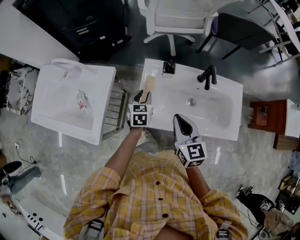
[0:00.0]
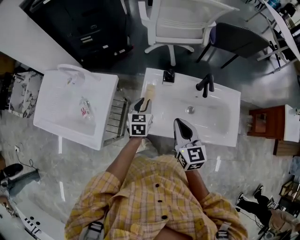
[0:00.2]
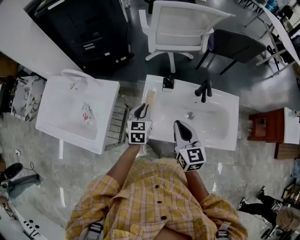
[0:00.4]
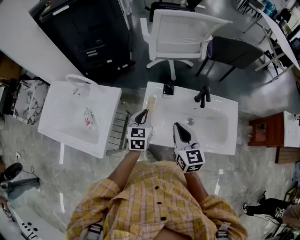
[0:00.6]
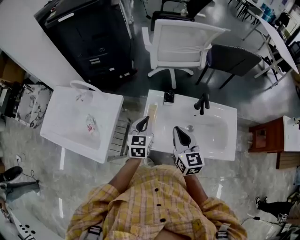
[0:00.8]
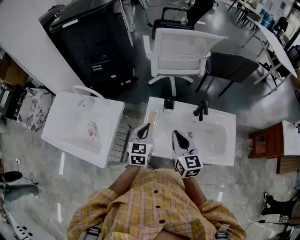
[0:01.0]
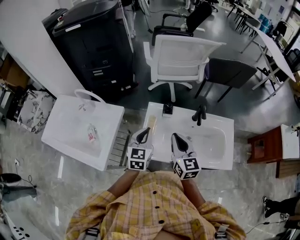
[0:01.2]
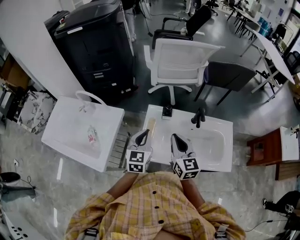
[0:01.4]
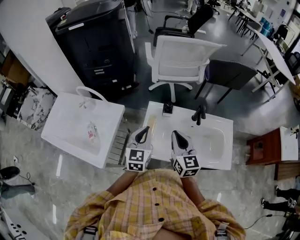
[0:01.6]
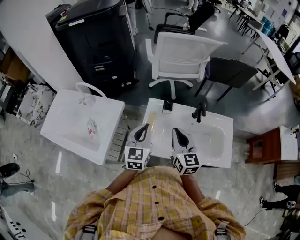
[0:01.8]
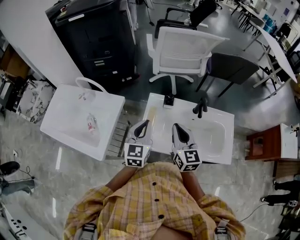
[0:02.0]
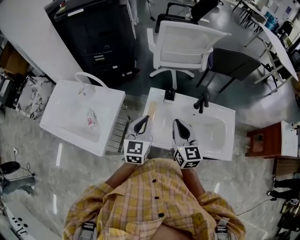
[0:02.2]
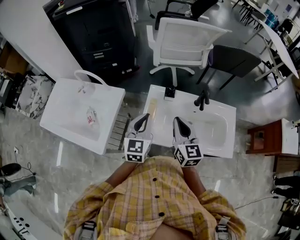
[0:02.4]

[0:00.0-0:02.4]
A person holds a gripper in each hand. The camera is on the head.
0:00.0 to 0:01.2: The right gripper goes about 5 cm upward; the left gripper heads upward, covering about 15 cm, turns by roughly 20 degrees, and closes up.
0:01.2 to 0:02.4: The grippers move only a little.

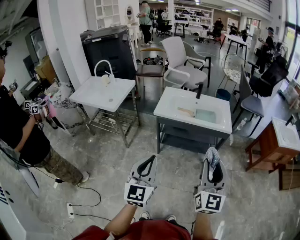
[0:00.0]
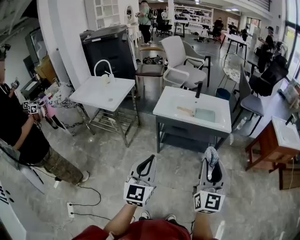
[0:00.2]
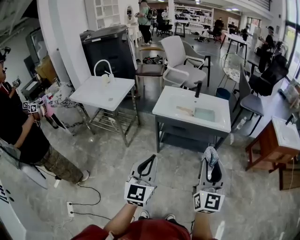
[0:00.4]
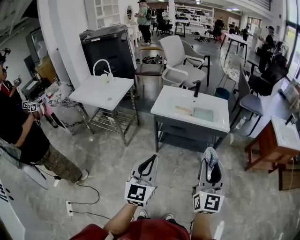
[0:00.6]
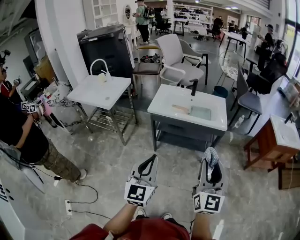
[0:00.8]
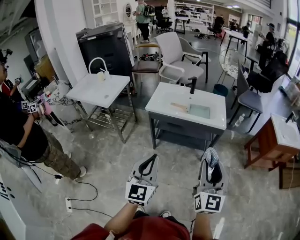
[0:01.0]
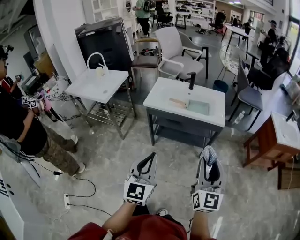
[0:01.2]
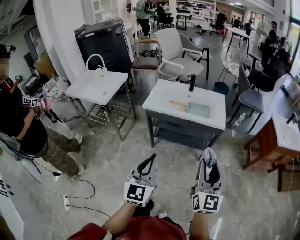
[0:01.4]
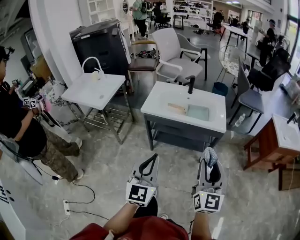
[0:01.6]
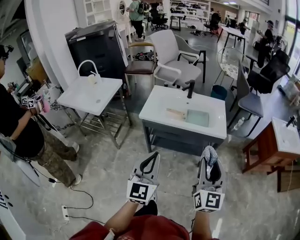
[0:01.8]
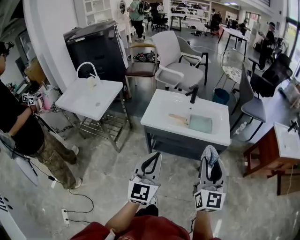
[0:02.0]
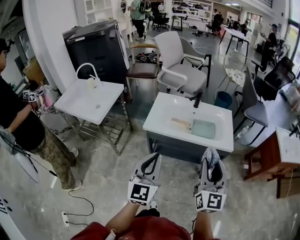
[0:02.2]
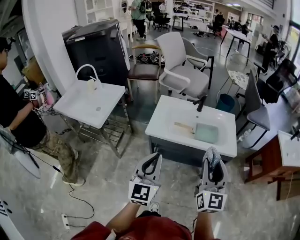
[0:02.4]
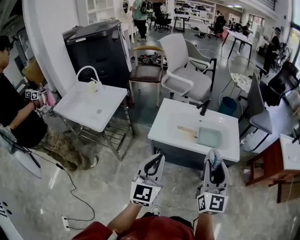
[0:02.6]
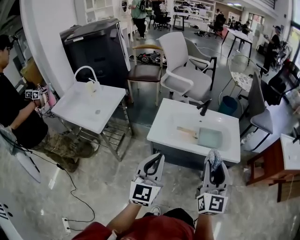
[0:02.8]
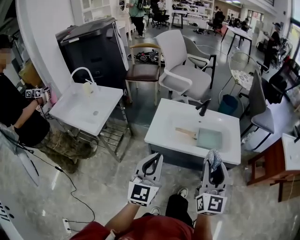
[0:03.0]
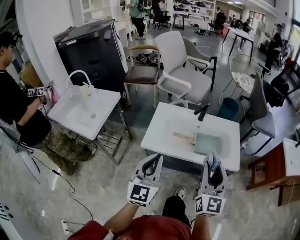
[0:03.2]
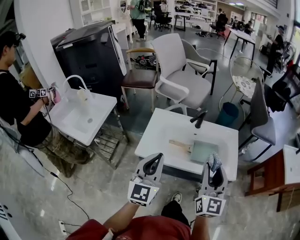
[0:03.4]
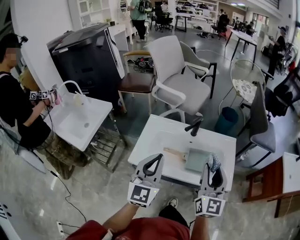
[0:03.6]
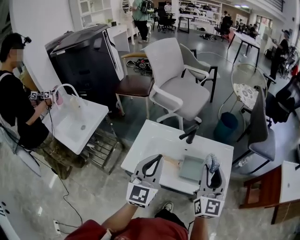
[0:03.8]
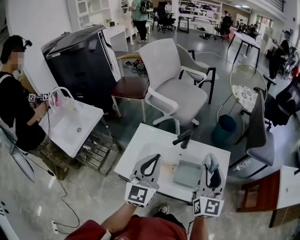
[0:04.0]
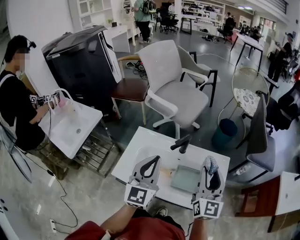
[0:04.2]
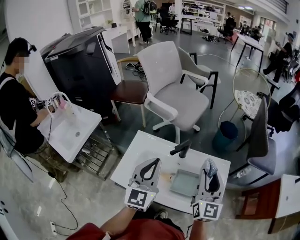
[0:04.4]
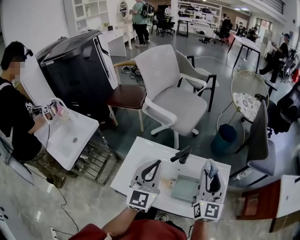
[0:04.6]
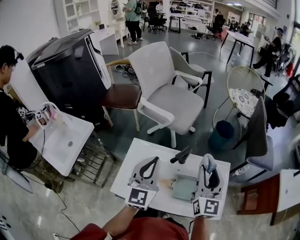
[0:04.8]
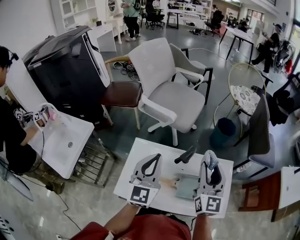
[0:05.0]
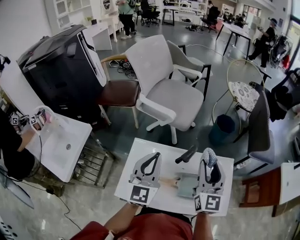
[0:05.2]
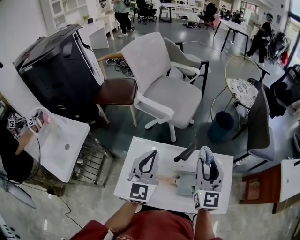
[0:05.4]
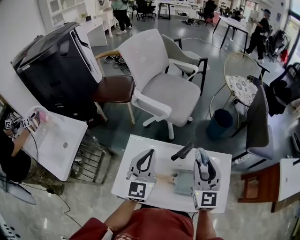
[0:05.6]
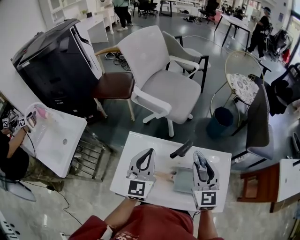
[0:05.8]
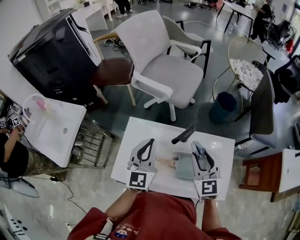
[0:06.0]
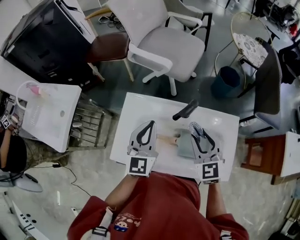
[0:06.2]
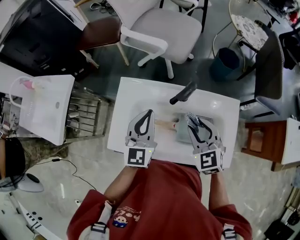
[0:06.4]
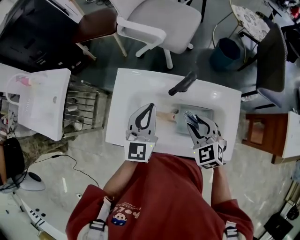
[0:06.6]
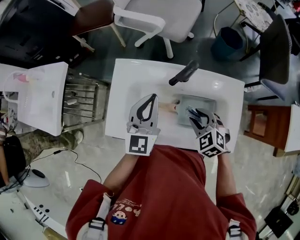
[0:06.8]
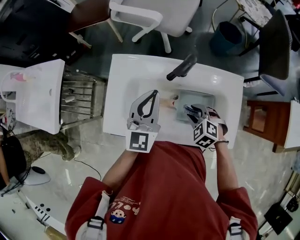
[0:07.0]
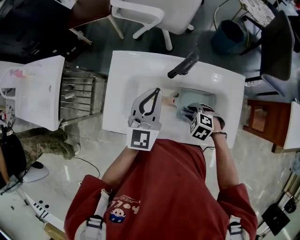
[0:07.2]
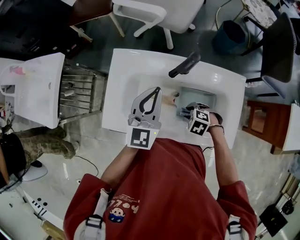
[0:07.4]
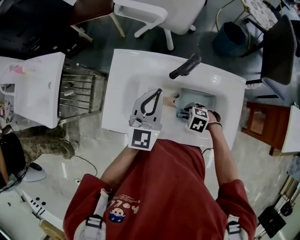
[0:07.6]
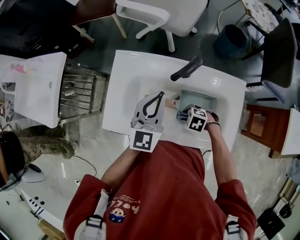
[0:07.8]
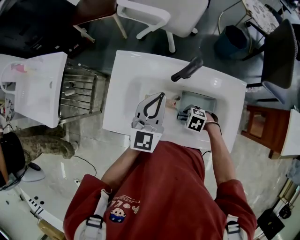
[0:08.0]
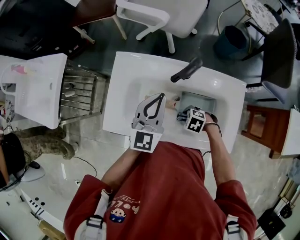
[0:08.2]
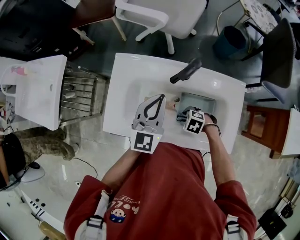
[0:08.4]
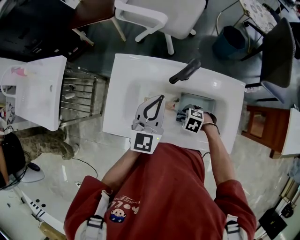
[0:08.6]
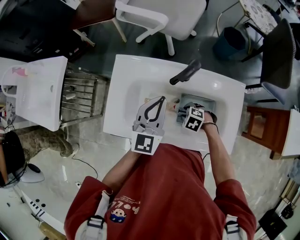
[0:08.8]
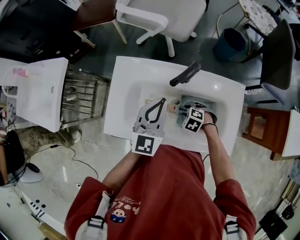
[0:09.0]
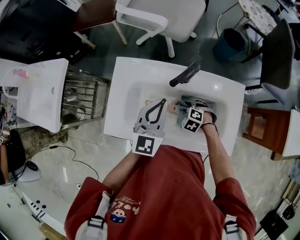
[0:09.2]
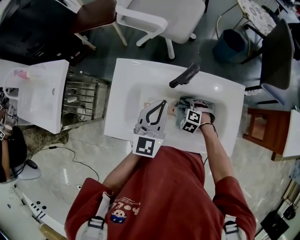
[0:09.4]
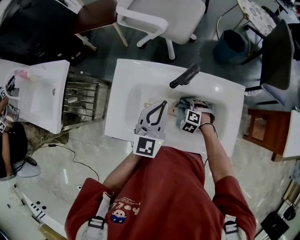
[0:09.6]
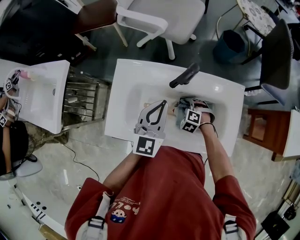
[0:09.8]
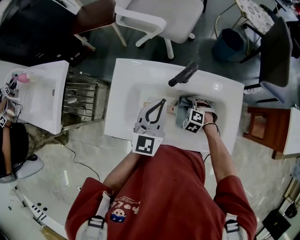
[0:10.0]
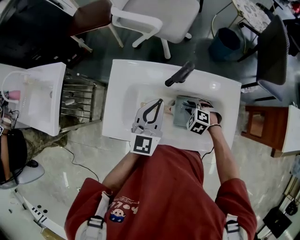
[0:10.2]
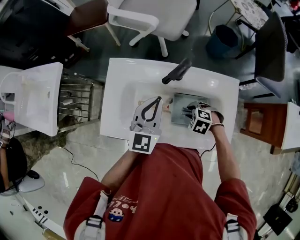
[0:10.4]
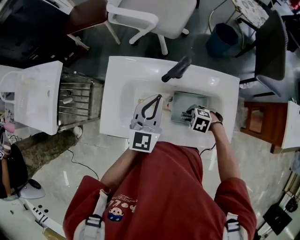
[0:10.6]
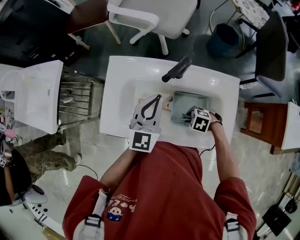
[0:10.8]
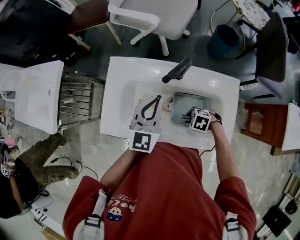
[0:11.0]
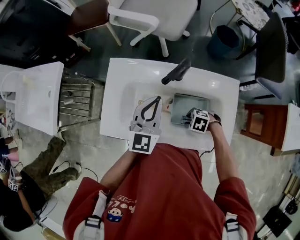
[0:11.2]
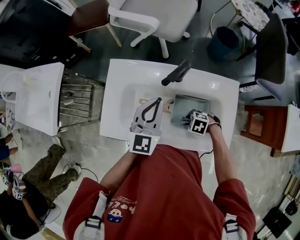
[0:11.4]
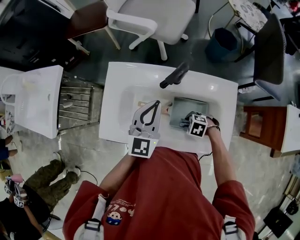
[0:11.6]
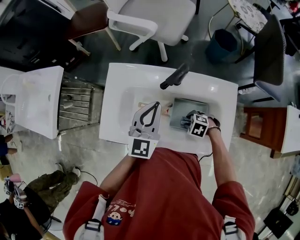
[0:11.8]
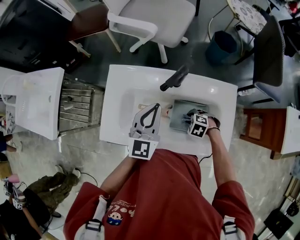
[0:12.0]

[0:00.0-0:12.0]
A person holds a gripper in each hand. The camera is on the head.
0:00.0 to 0:01.6: The two grippers go some 10 cm to the right and forward.
0:01.6 to 0:03.0: Both grippers travel together forward and to the left, roughly 30 cm.
0:03.0 to 0:04.4: The left gripper goes approximately 35 cm forward and to the right. Meanwhile the right gripper shifts roughly 35 cm forward.
0:04.4 to 0:06.0: The left gripper travels downward, forward and to the left by approximately 15 cm, while the right gripper goes some 15 cm downward, to the left and forward, and rotates roughly 30 degrees.
0:06.0 to 0:07.6: The left gripper moves downward, some 10 cm, while the right gripper travels downward by approximately 30 cm, and tilts its fingers about 50 degrees downward.
0:07.6 to 0:09.0: The right gripper changes place by approximately 5 cm.
0:09.0 to 0:10.4: The right gripper goes some 5 cm upward.
0:10.4 to 0:12.0: The right gripper shifts by approximately 5 cm.

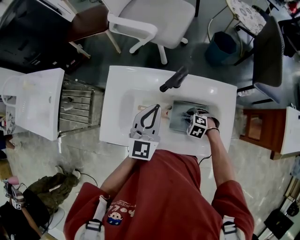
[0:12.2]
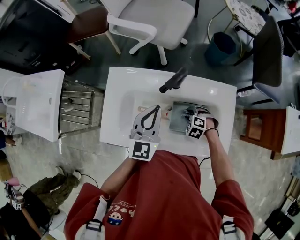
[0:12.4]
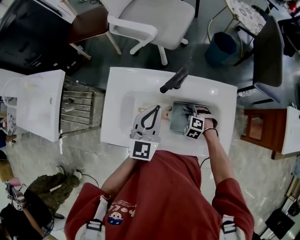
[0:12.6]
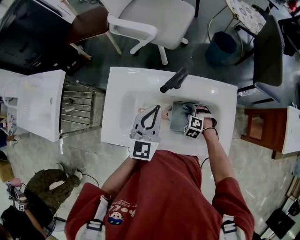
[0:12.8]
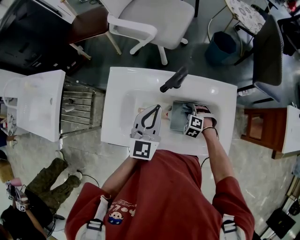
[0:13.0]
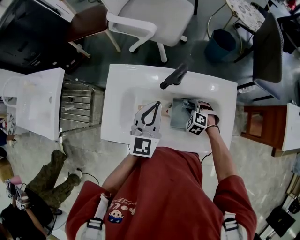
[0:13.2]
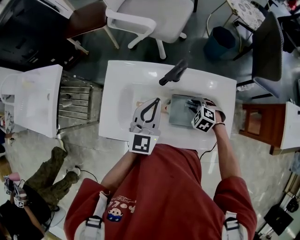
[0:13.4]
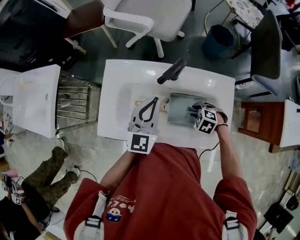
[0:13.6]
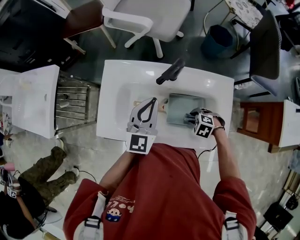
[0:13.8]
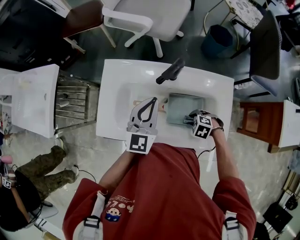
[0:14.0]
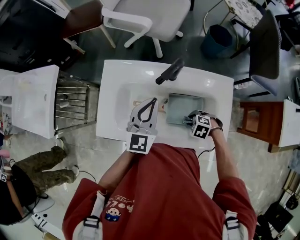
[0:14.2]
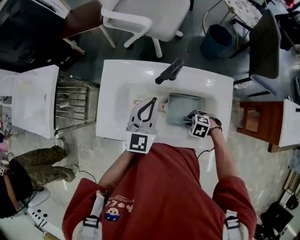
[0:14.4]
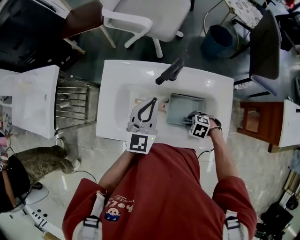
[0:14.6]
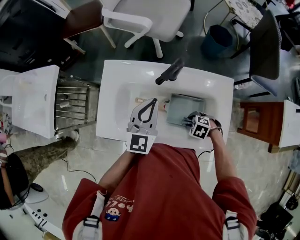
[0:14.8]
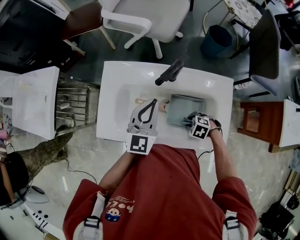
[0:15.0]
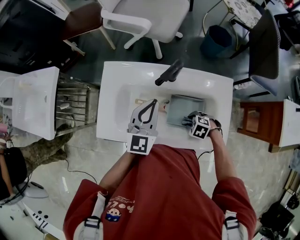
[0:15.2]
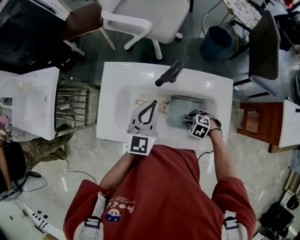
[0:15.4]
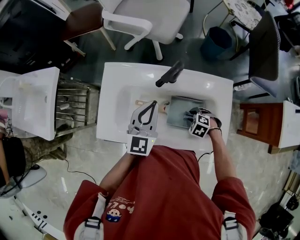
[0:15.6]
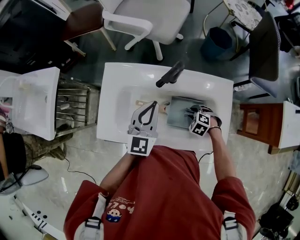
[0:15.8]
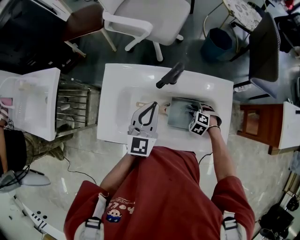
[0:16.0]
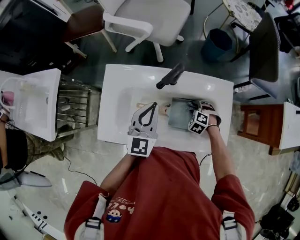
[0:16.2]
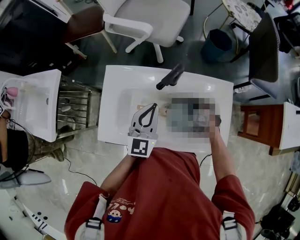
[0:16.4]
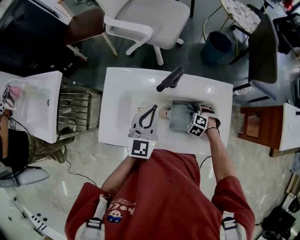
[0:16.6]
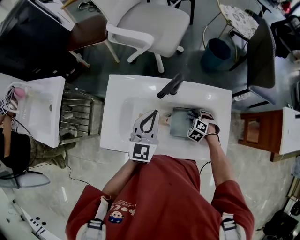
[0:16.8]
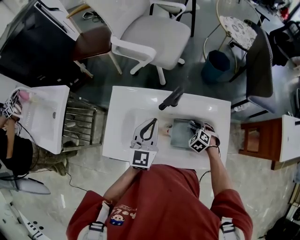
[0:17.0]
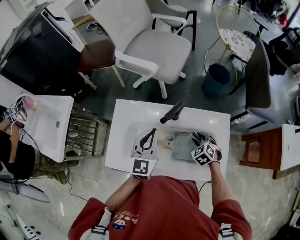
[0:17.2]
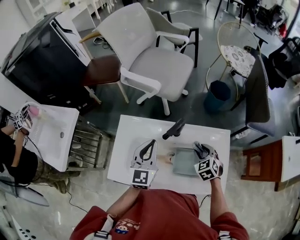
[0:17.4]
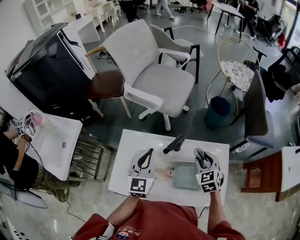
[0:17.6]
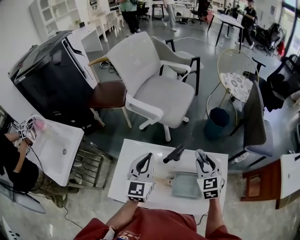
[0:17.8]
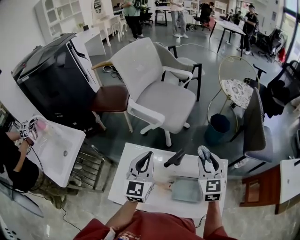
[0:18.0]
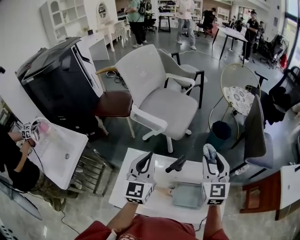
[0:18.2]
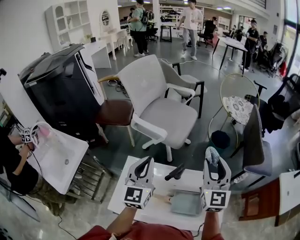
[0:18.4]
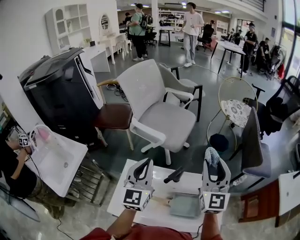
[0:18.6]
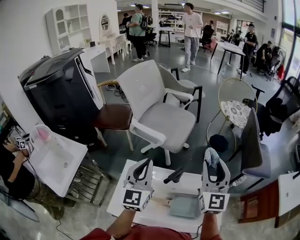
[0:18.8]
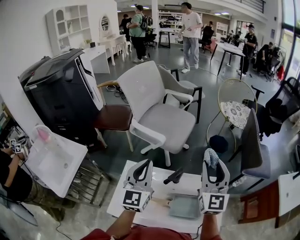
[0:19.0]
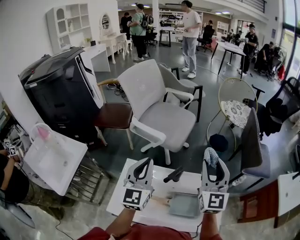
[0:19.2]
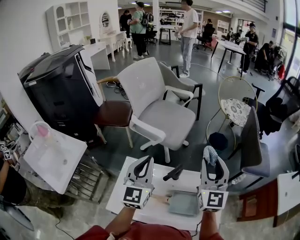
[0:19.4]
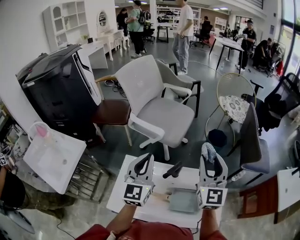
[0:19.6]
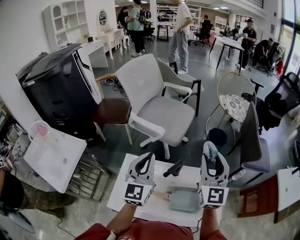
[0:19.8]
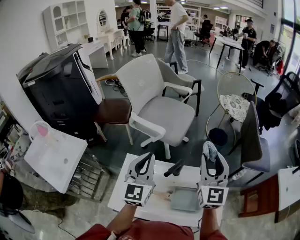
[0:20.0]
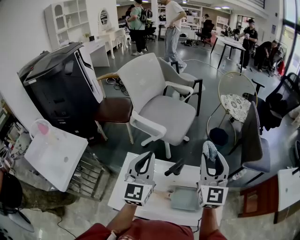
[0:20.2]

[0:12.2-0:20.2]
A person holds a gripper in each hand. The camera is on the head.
0:12.2 to 0:13.8: The right gripper moves about 5 cm.
0:13.8 to 0:15.4: The grippers stay close to where they were, moving slightly.
0:15.4 to 0:17.0: The right gripper shifts by some 10 cm, and rotates roughly 30 degrees.
0:17.0 to 0:18.6: The left gripper is displaced upward by about 20 cm, while the right gripper moves upward, about 50 cm, and tips its fingers upward by about 70 degrees.
0:18.6 to 0:20.2: The grippers make only small movements.

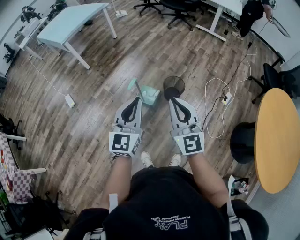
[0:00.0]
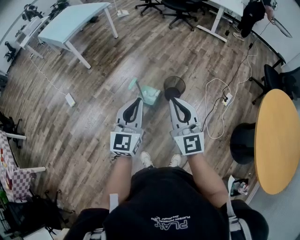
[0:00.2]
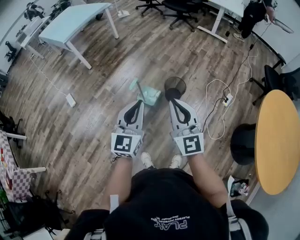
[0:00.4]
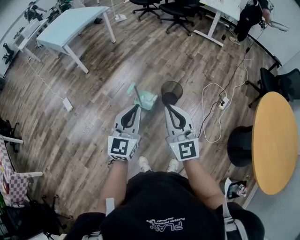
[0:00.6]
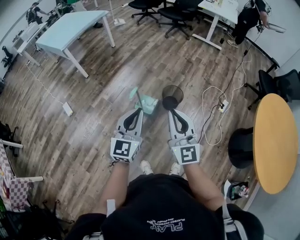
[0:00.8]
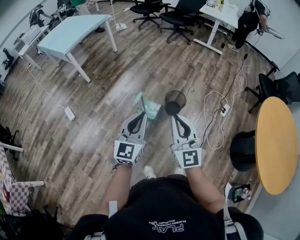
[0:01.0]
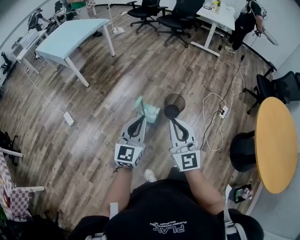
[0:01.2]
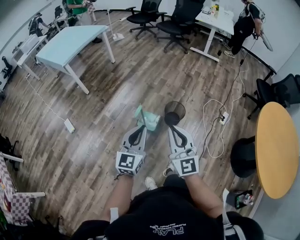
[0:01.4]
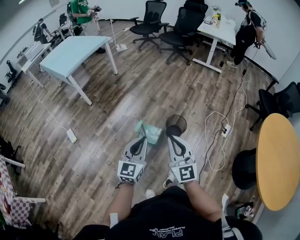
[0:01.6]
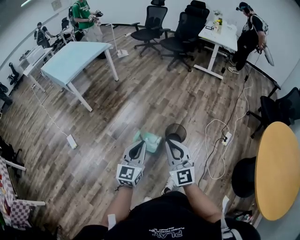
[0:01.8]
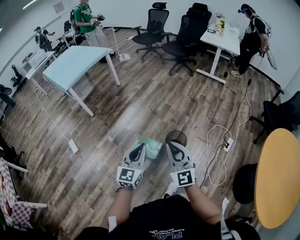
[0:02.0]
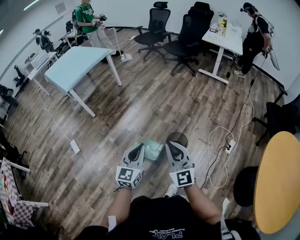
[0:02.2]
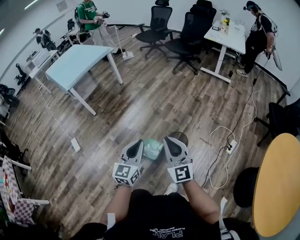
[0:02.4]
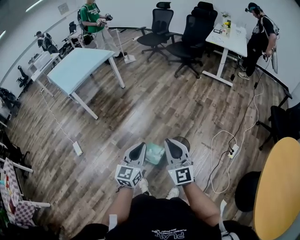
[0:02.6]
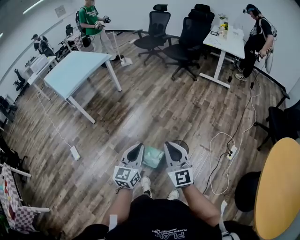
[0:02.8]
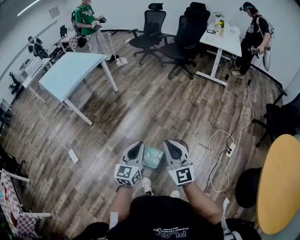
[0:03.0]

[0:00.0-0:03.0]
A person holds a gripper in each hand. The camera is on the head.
0:00.0 to 0:01.6: The right gripper travels forward and to the left by approximately 10 cm. Meanwhile the left gripper heads forward and downward, covering roughly 10 cm.
0:01.6 to 0:03.0: The two grippers go some 20 cm forward.
